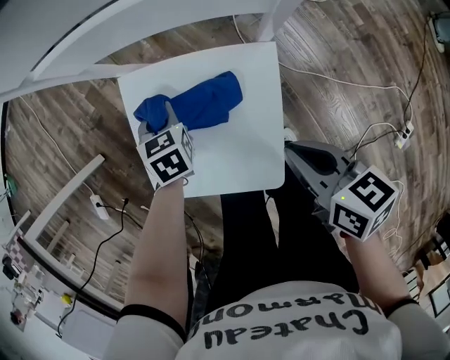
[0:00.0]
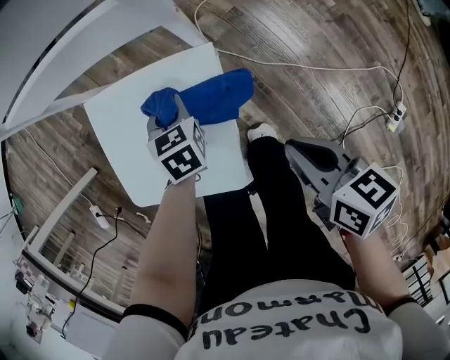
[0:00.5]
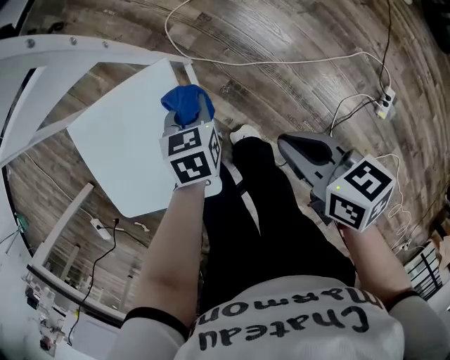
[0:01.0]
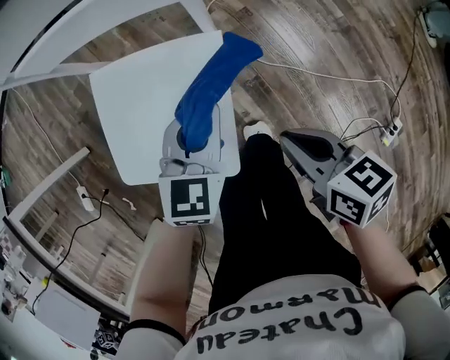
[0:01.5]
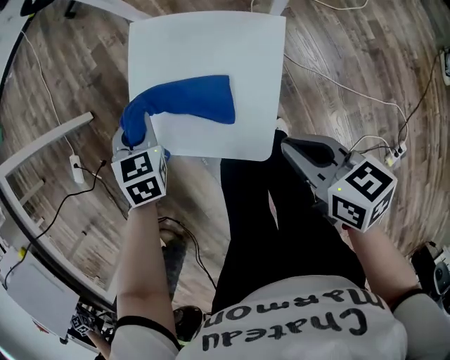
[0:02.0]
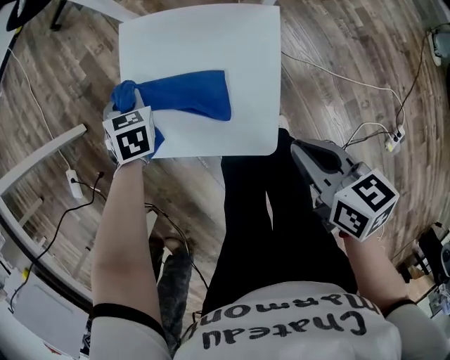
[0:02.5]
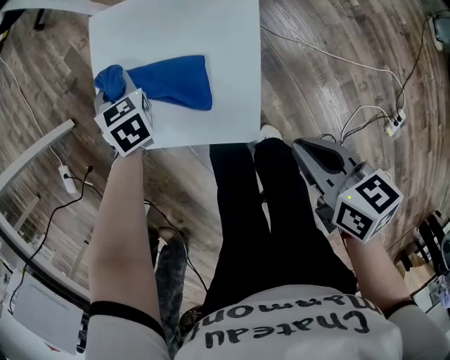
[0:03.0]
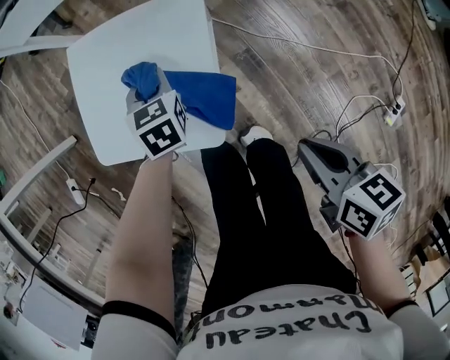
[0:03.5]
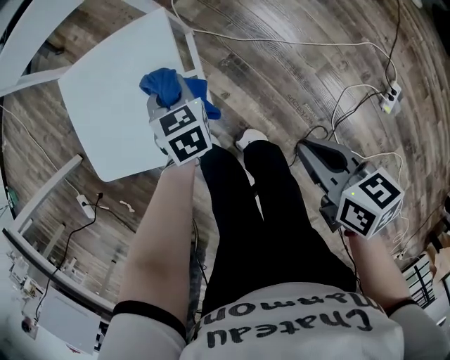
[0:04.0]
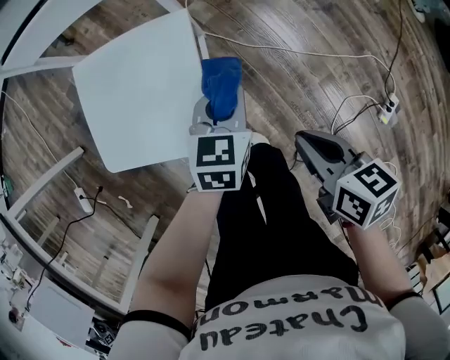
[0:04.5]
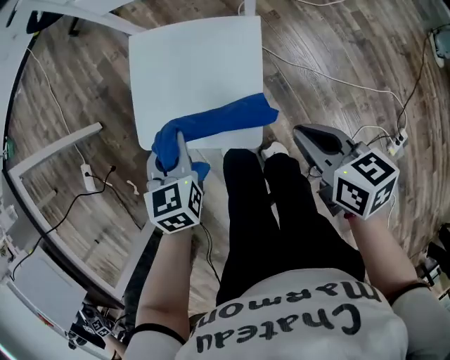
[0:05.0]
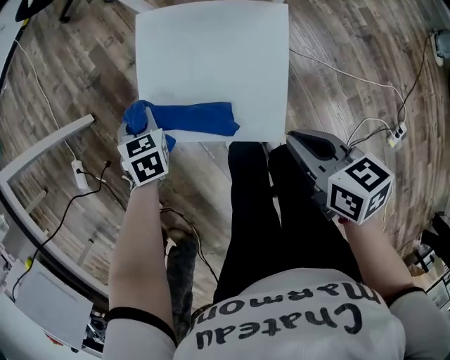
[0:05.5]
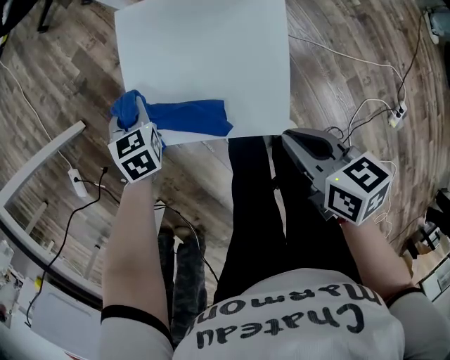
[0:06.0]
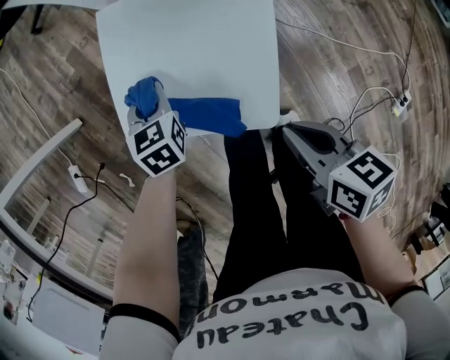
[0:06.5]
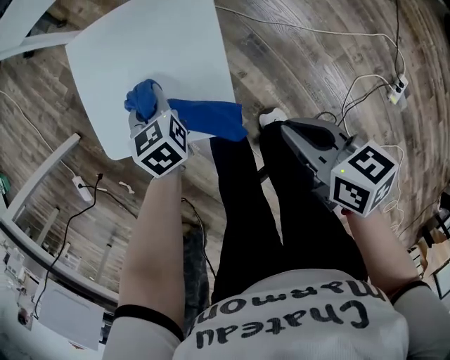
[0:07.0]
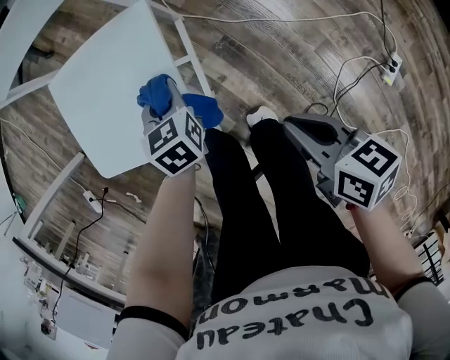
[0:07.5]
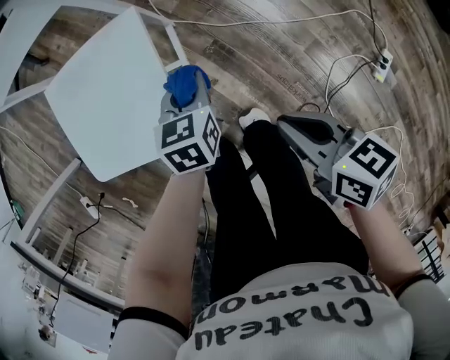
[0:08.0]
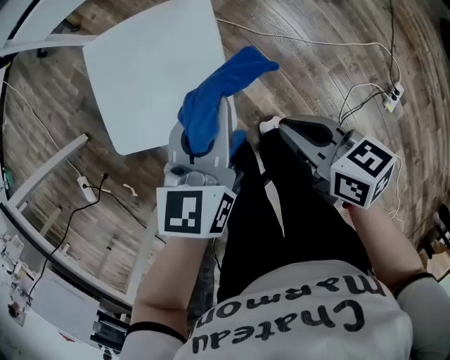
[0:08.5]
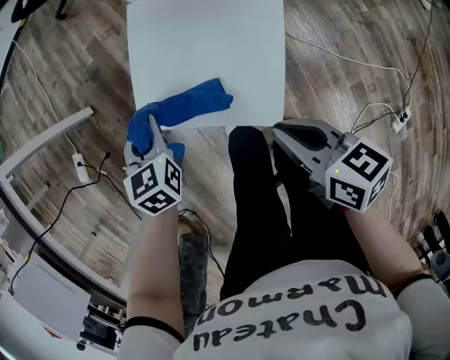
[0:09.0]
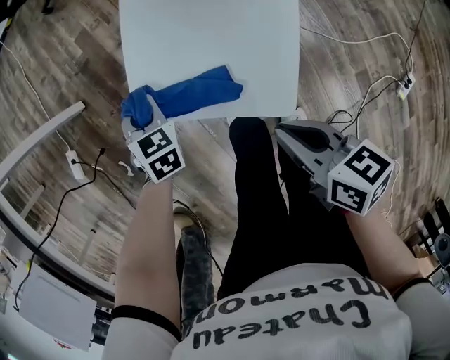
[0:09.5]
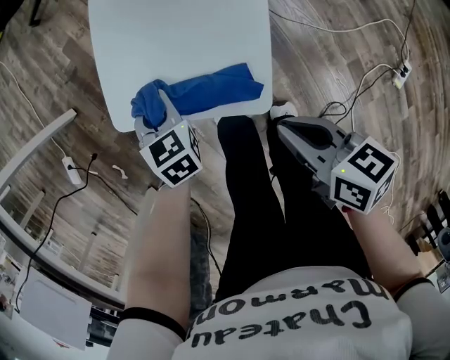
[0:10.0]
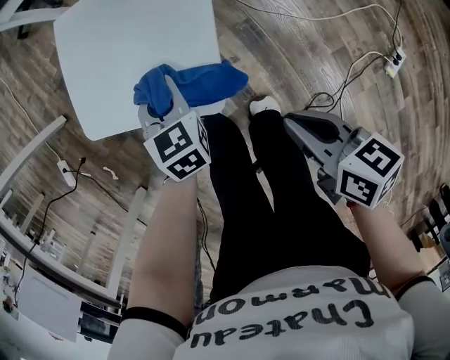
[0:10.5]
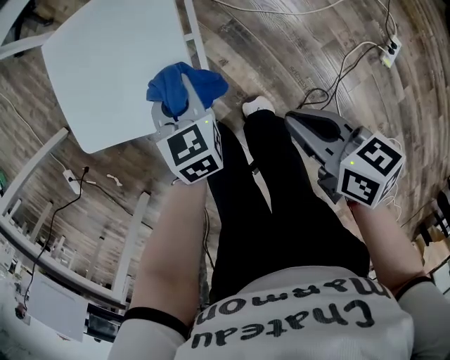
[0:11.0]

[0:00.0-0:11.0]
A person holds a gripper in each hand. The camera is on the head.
0:02.0 to 0:03.5: The right gripper heads backward and to the right, covering about 15 cm, and rotates about 20 degrees. Meanwhile the left gripper goes roughly 20 cm to the right.
0:03.5 to 0:05.5: The right gripper ends up roughly 20 cm from where it was. Meanwhile the left gripper moves approximately 15 cm upward and comes back.
0:05.5 to 0:07.5: The left gripper goes roughly 35 cm to the right and backward, while the right gripper is displaced to the right and backward by about 20 cm.
0:07.5 to 0:09.0: The left gripper shifts by about 30 cm. The right gripper moves about 25 cm.
0:09.0 to 0:11.0: The left gripper moves to the right and backward, roughly 30 cm; the right gripper moves backward, to the right and downward, some 20 cm.

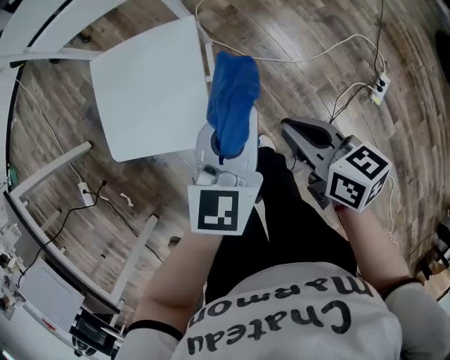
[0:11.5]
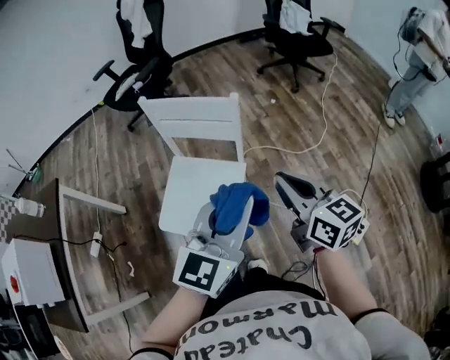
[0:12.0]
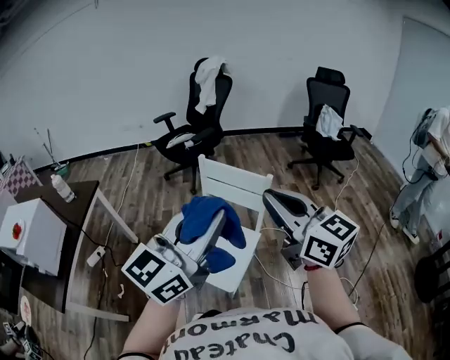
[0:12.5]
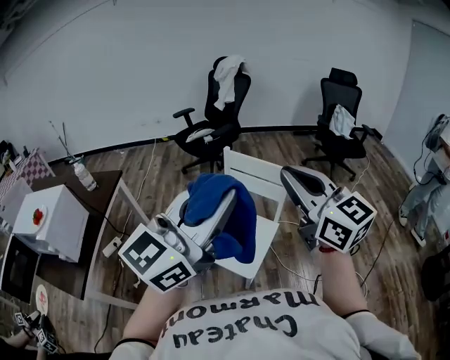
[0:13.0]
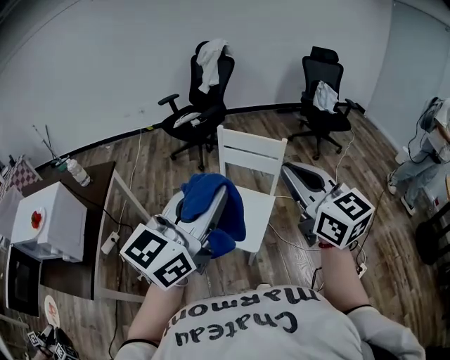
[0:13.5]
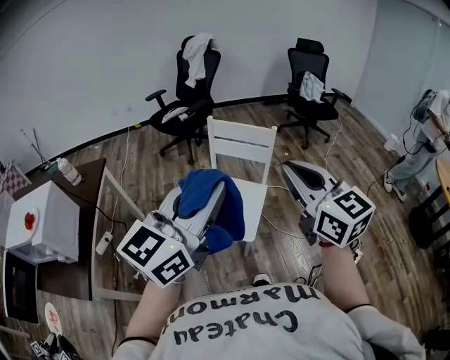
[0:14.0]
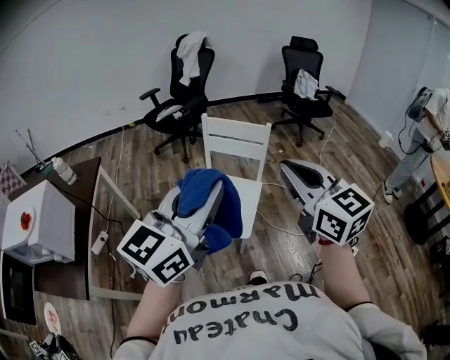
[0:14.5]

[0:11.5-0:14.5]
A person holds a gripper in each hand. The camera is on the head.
0:11.5 to 0:13.0: The right gripper travels upward by some 60 cm, and tips its fingers upward by approximately 30 degrees; the left gripper travels upward and to the left by about 60 cm, and tilts its fingers about 40 degrees upward.
0:13.0 to 0:14.5: The left gripper travels backward, downward and to the left by approximately 10 cm, while the right gripper goes roughly 10 cm backward and downward.

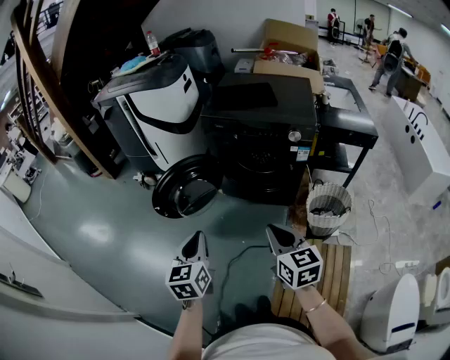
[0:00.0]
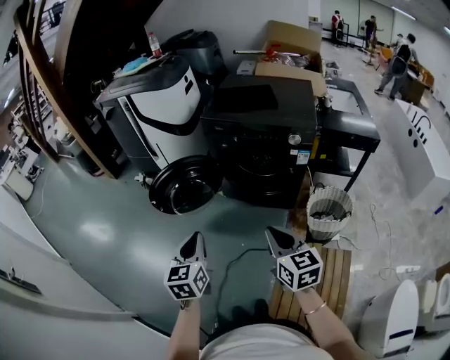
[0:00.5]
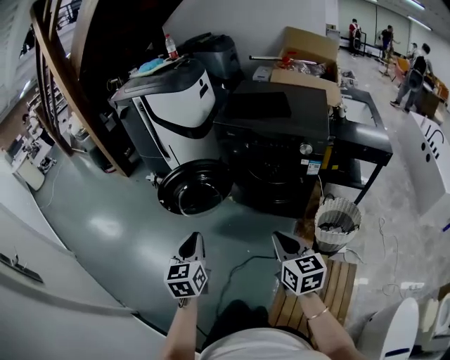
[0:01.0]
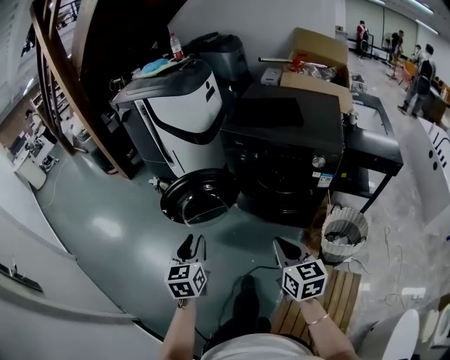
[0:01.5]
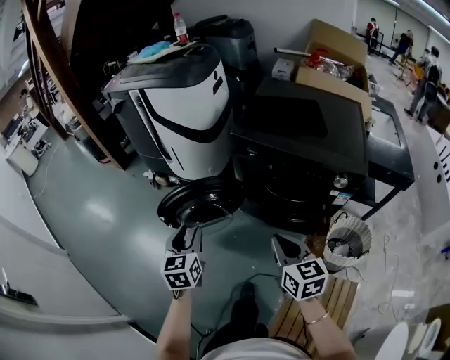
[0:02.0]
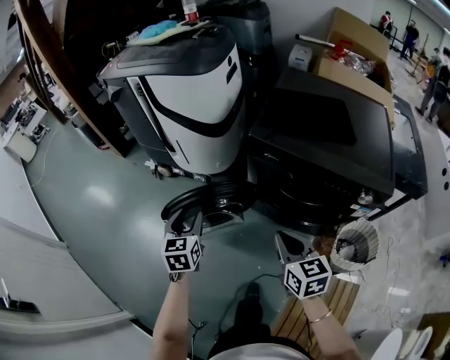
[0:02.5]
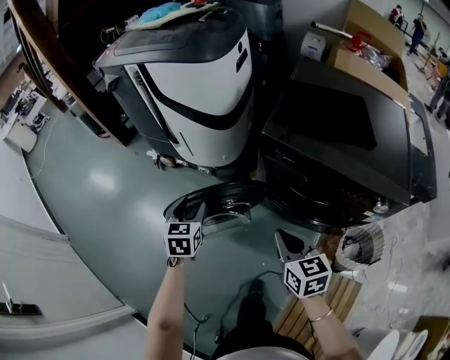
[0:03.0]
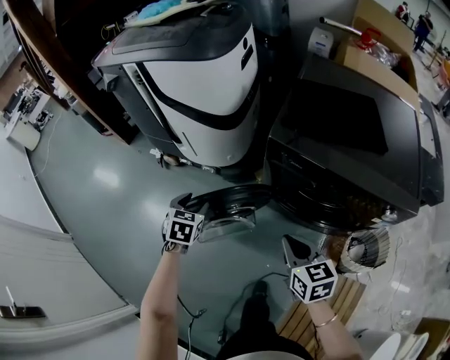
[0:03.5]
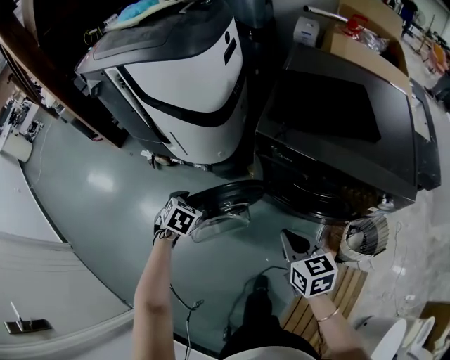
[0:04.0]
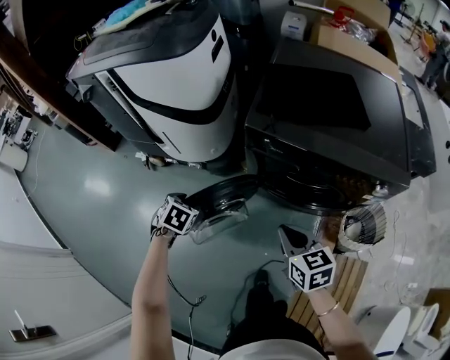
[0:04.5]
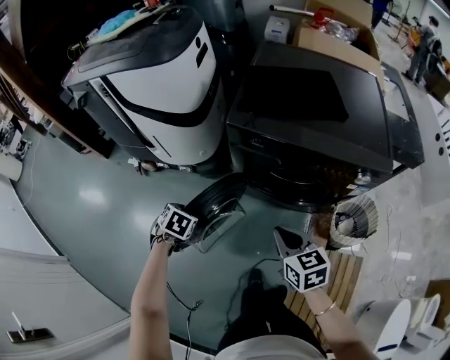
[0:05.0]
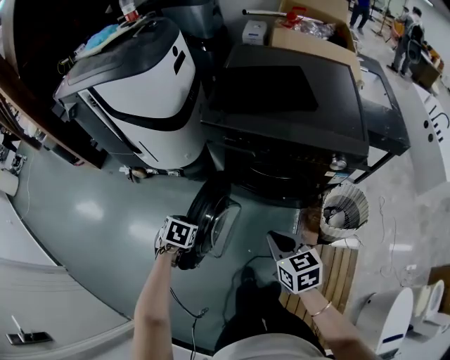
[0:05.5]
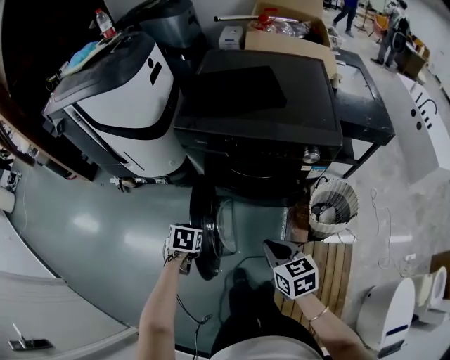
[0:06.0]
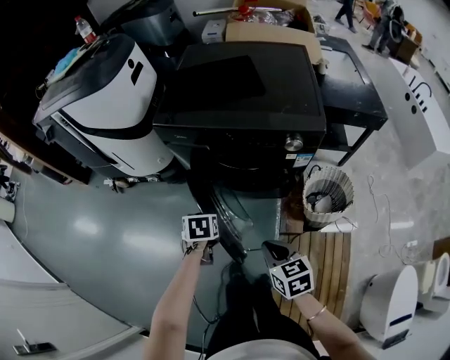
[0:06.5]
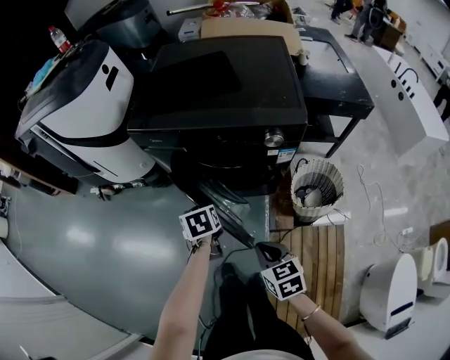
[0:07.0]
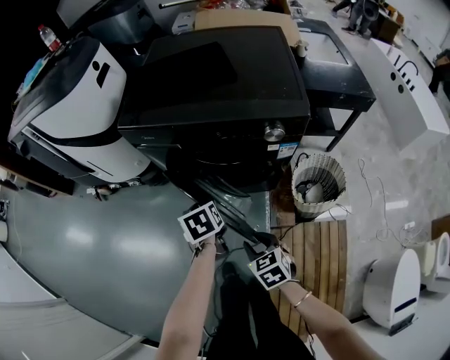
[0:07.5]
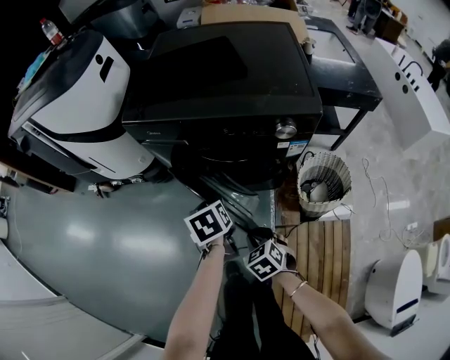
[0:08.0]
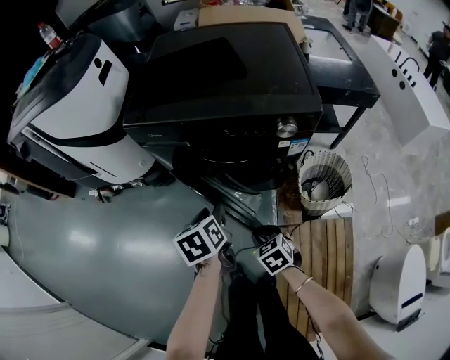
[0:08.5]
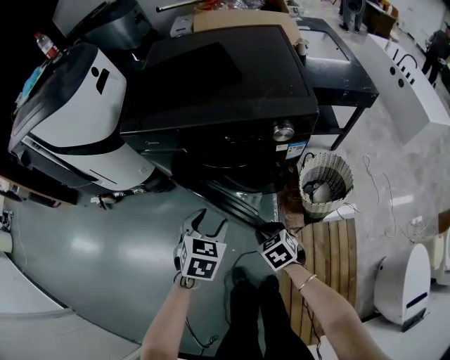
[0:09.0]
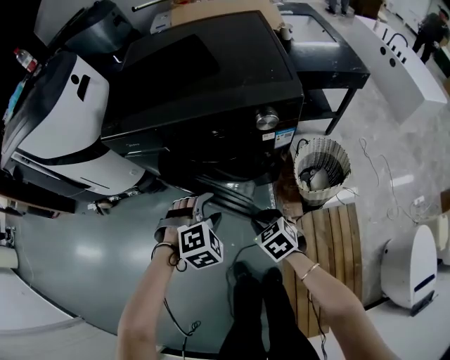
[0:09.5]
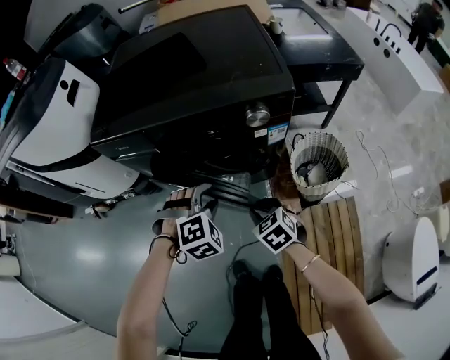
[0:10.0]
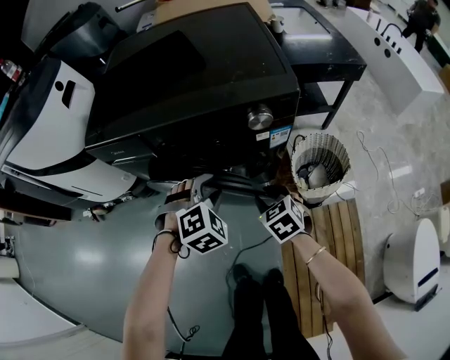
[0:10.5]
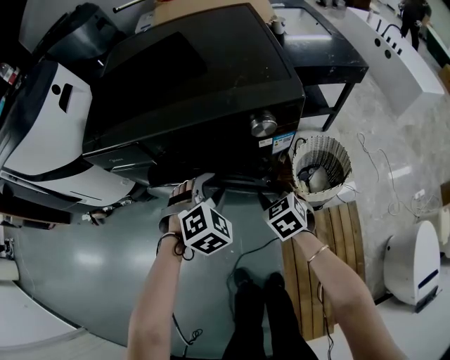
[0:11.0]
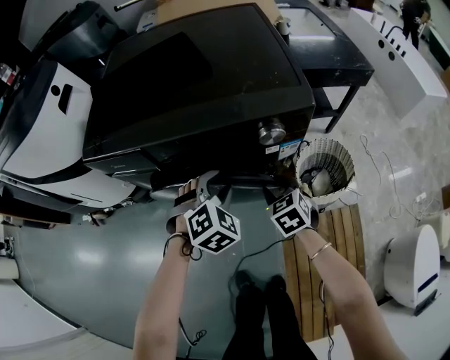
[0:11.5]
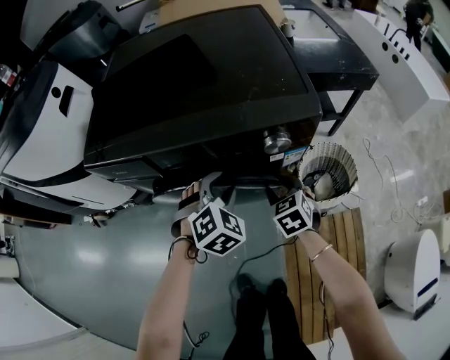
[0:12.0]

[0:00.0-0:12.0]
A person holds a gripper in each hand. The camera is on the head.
0:00.0 to 0:02.0: The two grippers go roughly 30 cm forward. The left gripper opens up.
0:02.0 to 0:04.0: Both grippers move forward and downward, some 30 cm. The left gripper angles its fingers downward, by approximately 40 degrees.
0:04.0 to 0:06.0: The grippers both shift backward and to the right by some 30 cm.
0:06.0 to 0:08.0: The left gripper is displaced to the right by roughly 20 cm, and rotates roughly 30 degrees; the right gripper is displaced downward by roughly 20 cm, and swivels roughly 30 degrees.
0:08.0 to 0:10.0: The left gripper heads to the right, covering some 10 cm, and rotates around the line of its fingers by about 110 degrees, clockwise from behind. Meanwhile the right gripper heads to the right and forward, covering approximately 10 cm.
0:10.0 to 0:12.0: The two grippers go roughly 15 cm forward. The left gripper swivels some 20 degrees.
